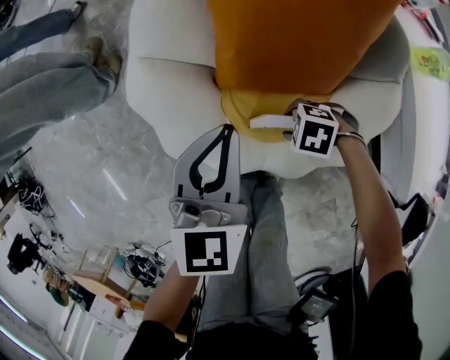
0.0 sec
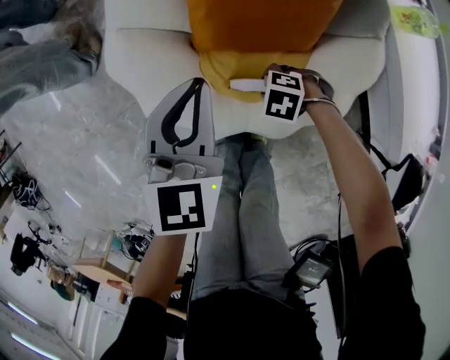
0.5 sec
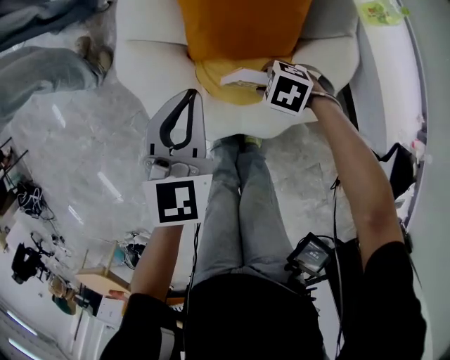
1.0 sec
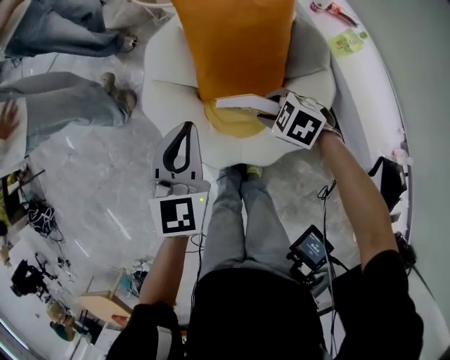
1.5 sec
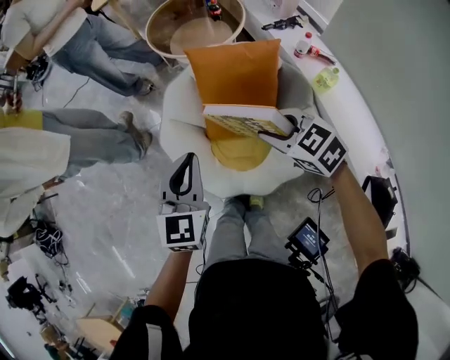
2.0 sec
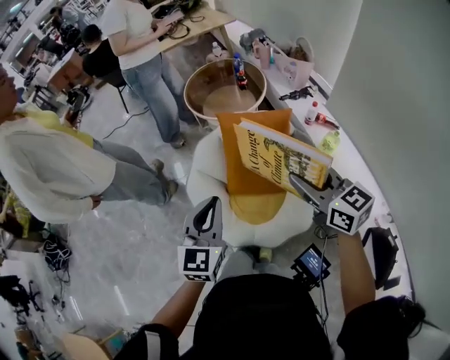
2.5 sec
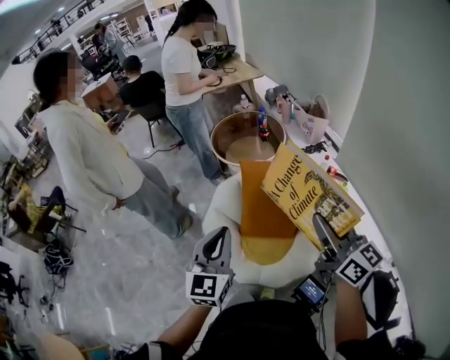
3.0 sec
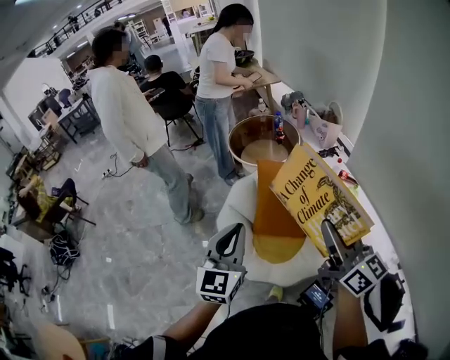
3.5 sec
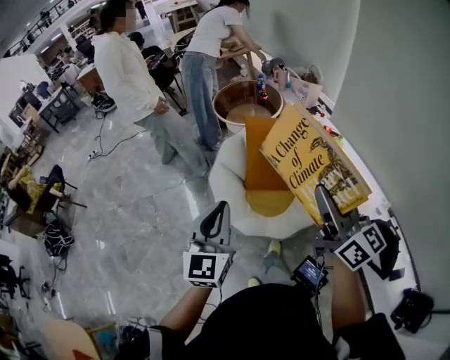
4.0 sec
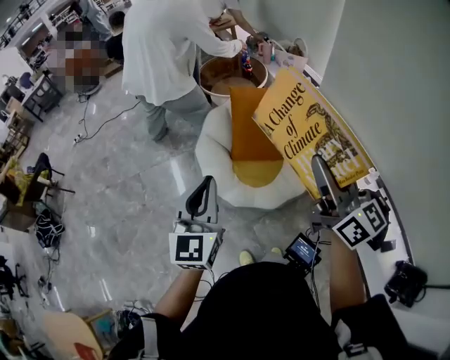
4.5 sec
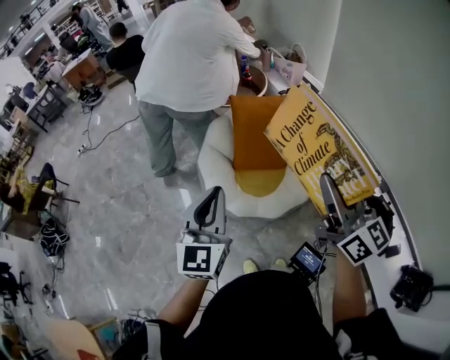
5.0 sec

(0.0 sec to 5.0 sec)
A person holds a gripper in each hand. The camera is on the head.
0.0 sec - 2.5 sec: The left gripper shifts roughly 40 cm upward; the right gripper heads upward, covering about 70 cm, and angles its fingers upward, by some 50 degrees.
2.5 sec - 5.0 sec: The left gripper heads backward, covering about 25 cm. Meanwhile the right gripper is displaced backward and upward by approximately 35 cm, and swivels some 30 degrees.

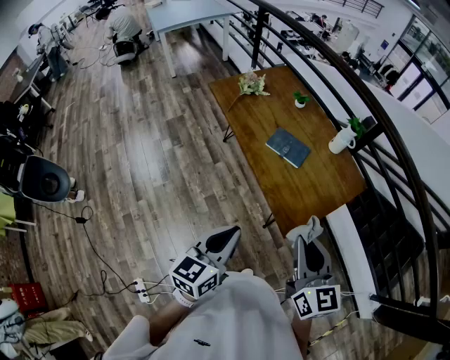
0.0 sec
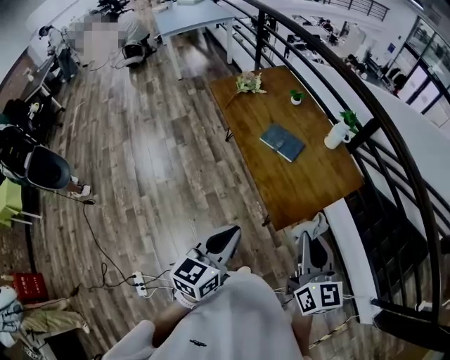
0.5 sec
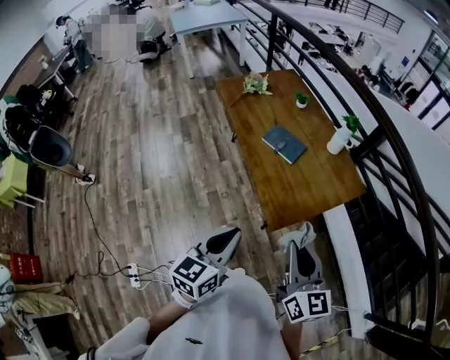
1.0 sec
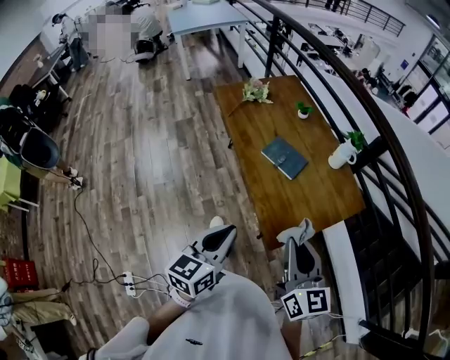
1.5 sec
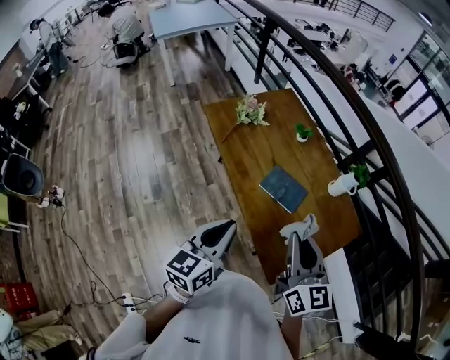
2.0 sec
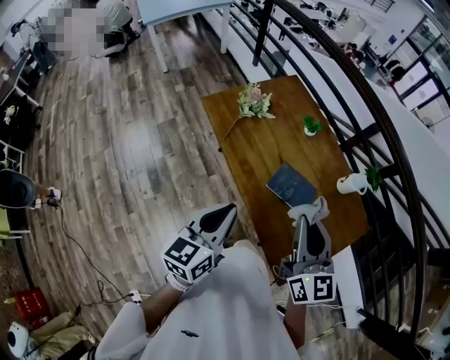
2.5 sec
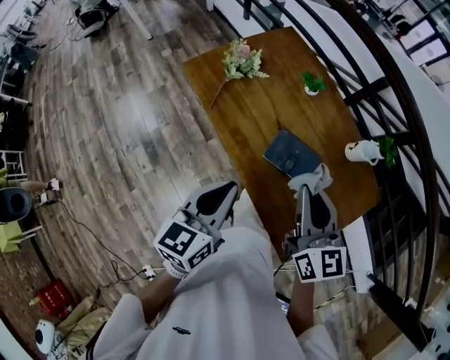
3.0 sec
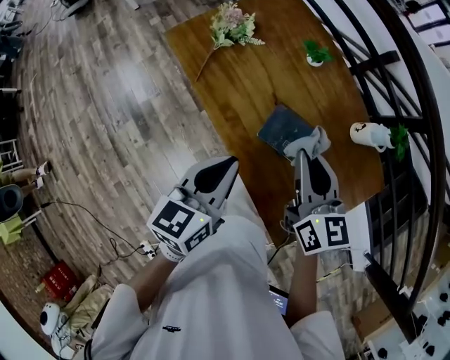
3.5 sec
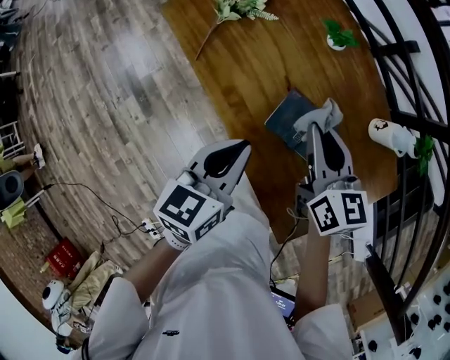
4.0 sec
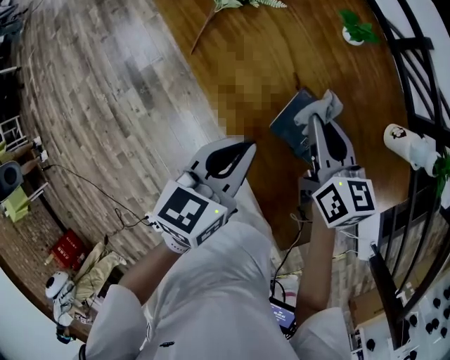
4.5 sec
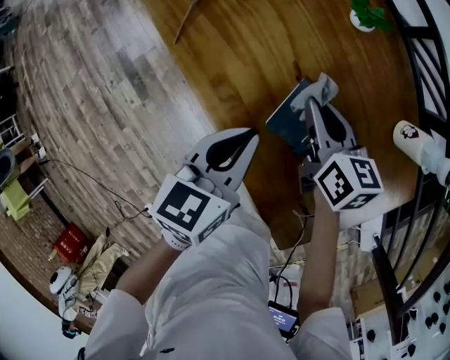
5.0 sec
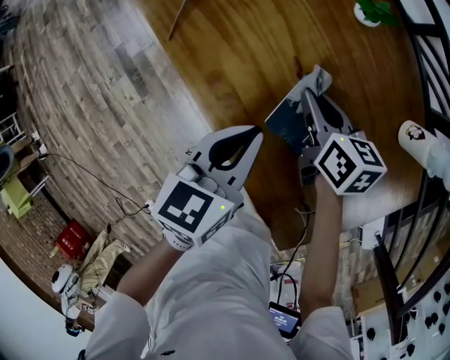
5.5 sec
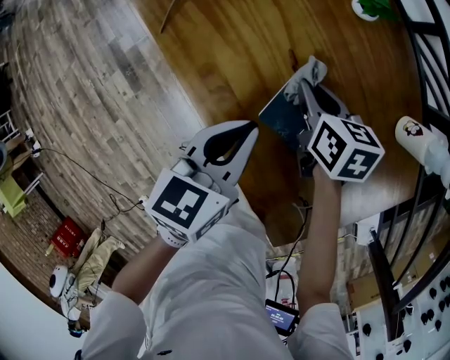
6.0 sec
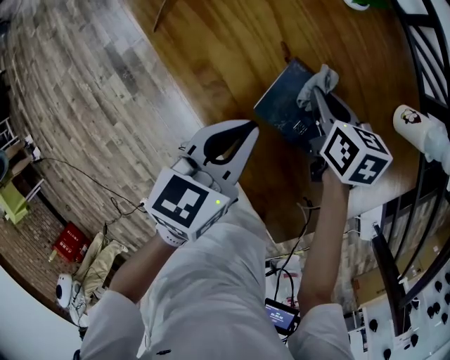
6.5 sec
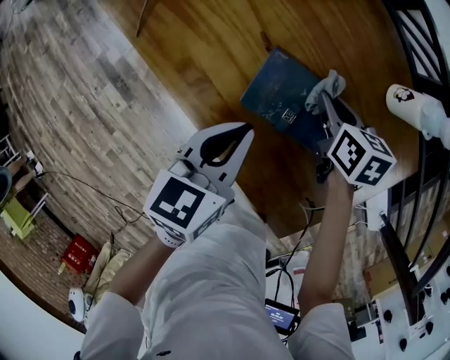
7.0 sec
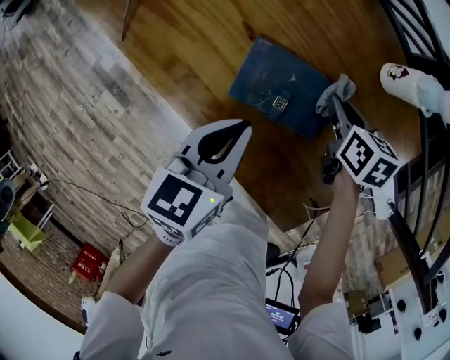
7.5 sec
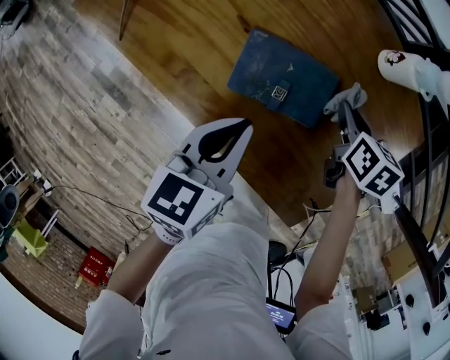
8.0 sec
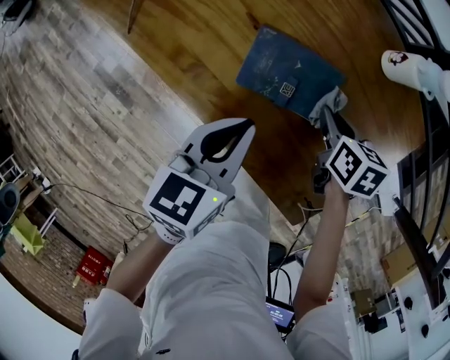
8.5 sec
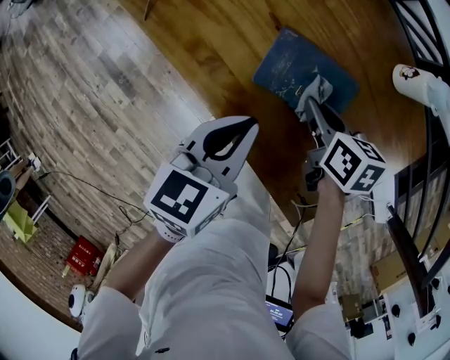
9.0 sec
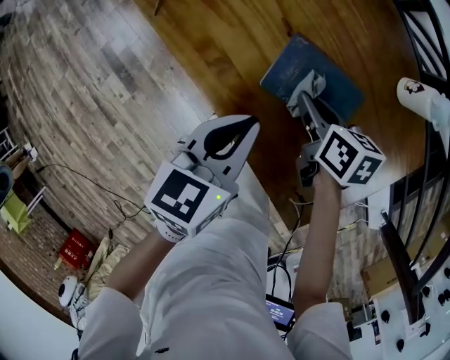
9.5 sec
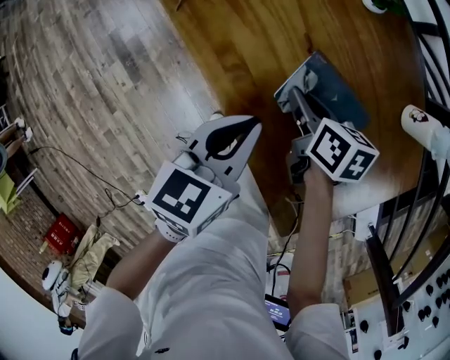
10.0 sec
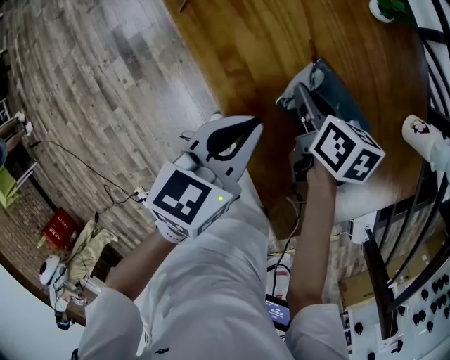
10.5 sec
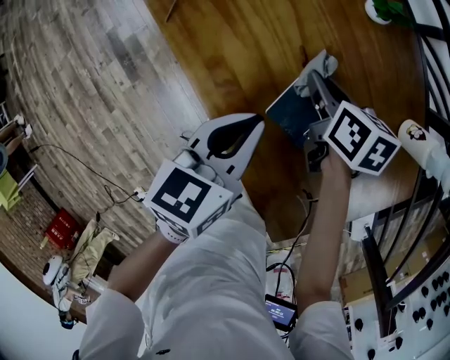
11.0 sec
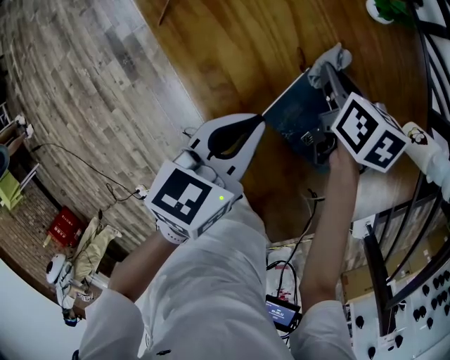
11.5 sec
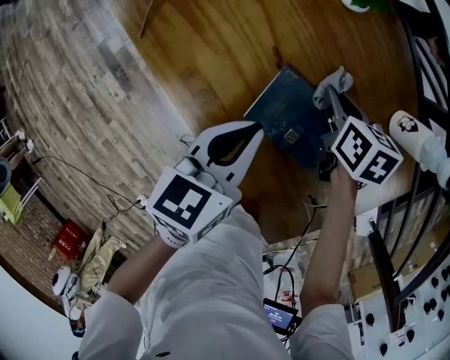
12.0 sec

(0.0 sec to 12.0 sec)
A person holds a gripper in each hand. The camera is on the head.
0.0 sec - 2.0 sec: Both grippers travel together forward, roughly 20 cm.
2.0 sec - 4.0 sec: The grippers both shift forward and downward by about 30 cm.
4.0 sec - 6.0 sec: The left gripper travels downward by approximately 10 cm, while the right gripper heads downward, covering some 20 cm, and swivels about 30 degrees.
6.0 sec - 8.0 sec: The left gripper travels to the right by about 5 cm. The right gripper heads to the right, covering approximately 20 cm, and turns by roughly 30 degrees.
8.0 sec - 10.0 sec: The left gripper changes place by approximately 10 cm. Meanwhile the right gripper changes place by about 25 cm, and changes its angle by about 30 degrees.
10.0 sec - 12.0 sec: The right gripper heads to the right and forward, covering approximately 15 cm. The left gripper shifts approximately 5 cm to the right.

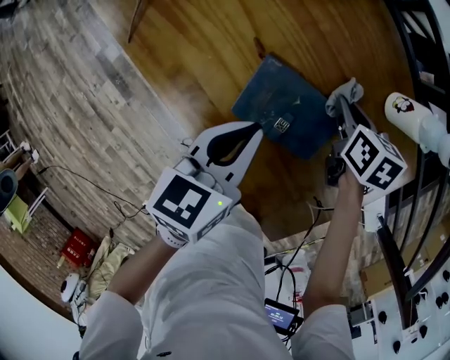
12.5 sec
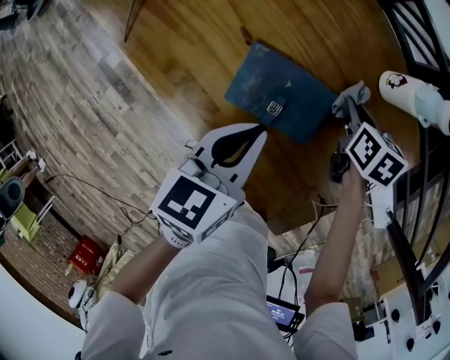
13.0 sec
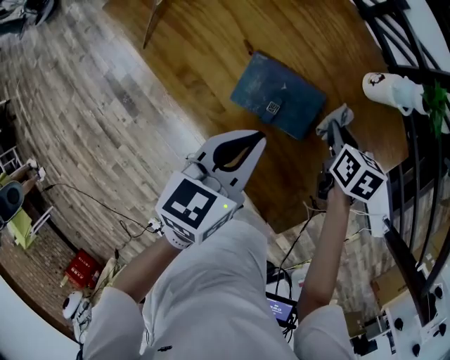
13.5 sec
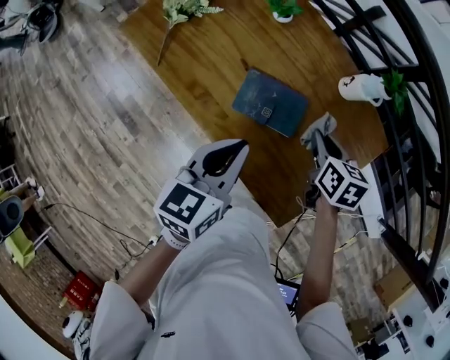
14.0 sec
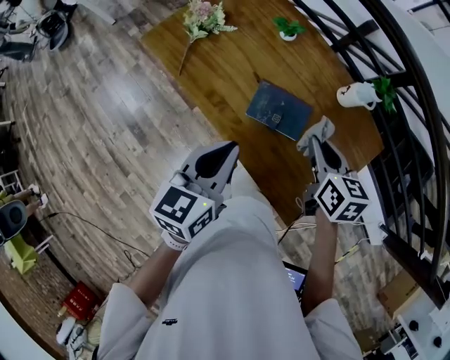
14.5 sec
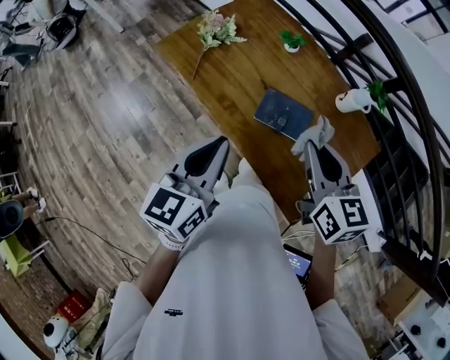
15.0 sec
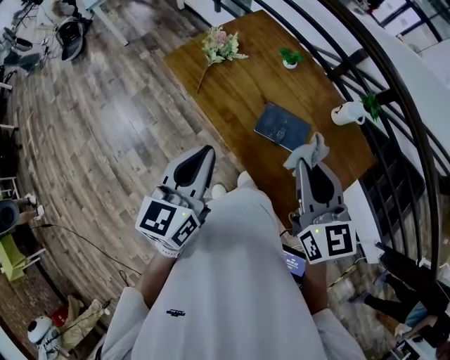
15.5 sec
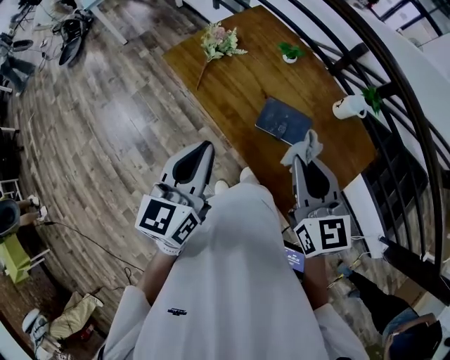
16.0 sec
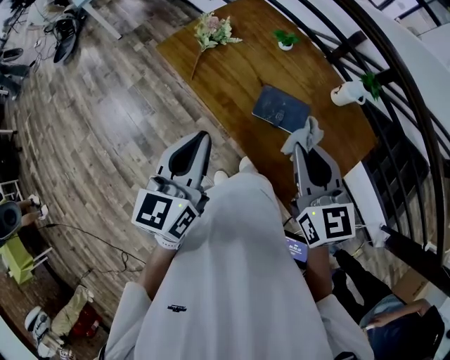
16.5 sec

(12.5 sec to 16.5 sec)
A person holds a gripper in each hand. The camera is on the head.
12.5 sec - 14.5 sec: The grippers both shift upward and backward by about 25 cm. The right gripper turns by about 20 degrees.
14.5 sec - 16.5 sec: The right gripper goes roughly 20 cm upward, to the left and backward, and turns by approximately 30 degrees, while the left gripper travels to the left and upward by about 15 cm.

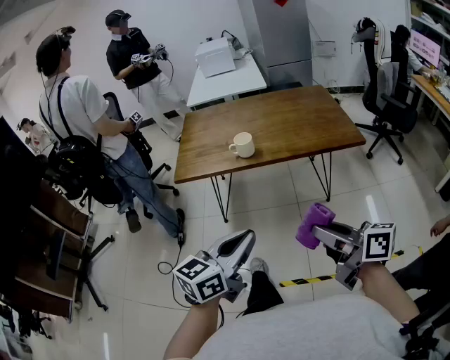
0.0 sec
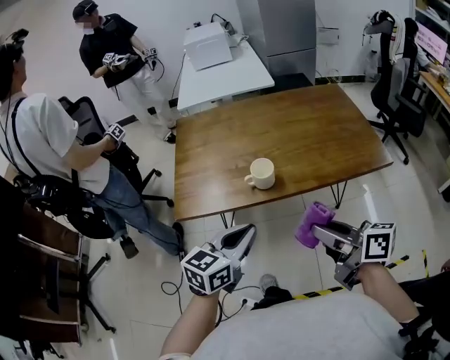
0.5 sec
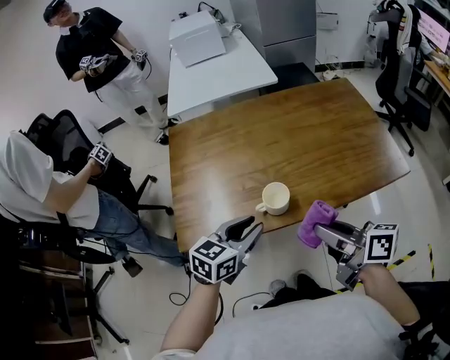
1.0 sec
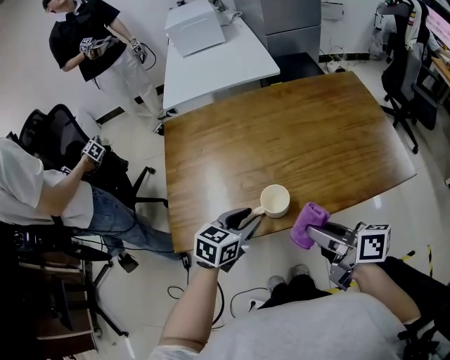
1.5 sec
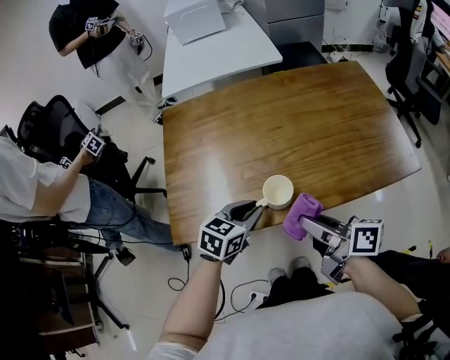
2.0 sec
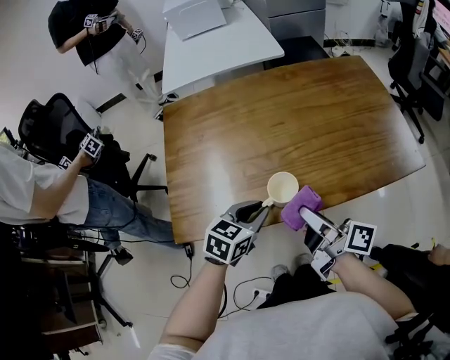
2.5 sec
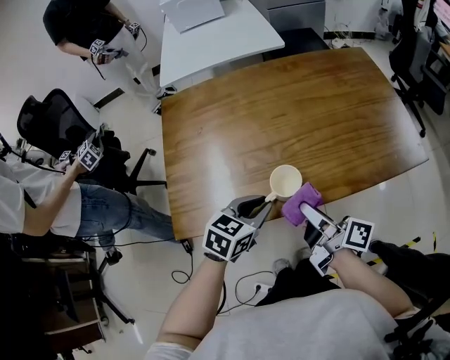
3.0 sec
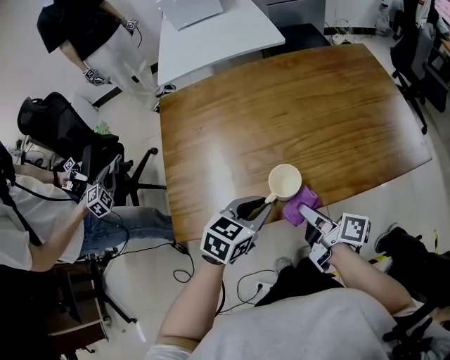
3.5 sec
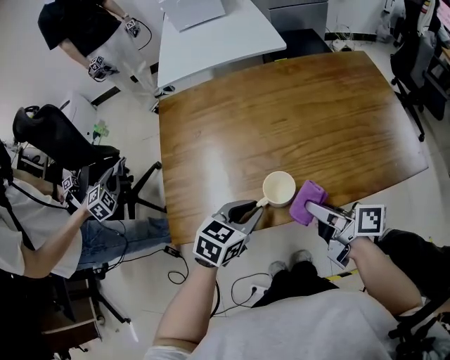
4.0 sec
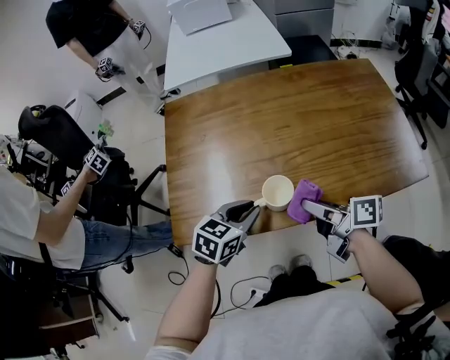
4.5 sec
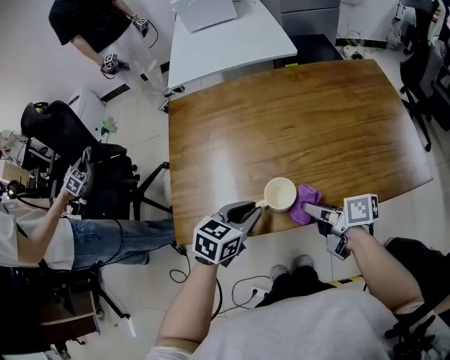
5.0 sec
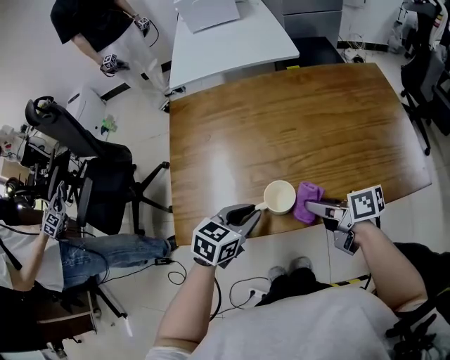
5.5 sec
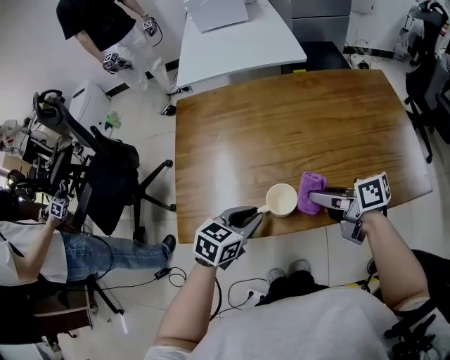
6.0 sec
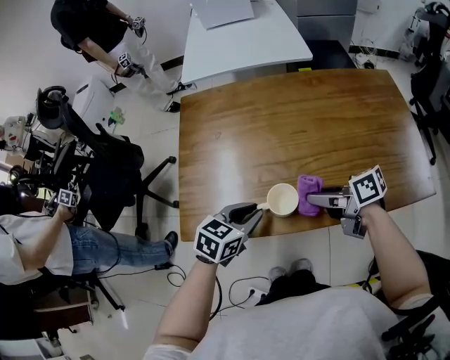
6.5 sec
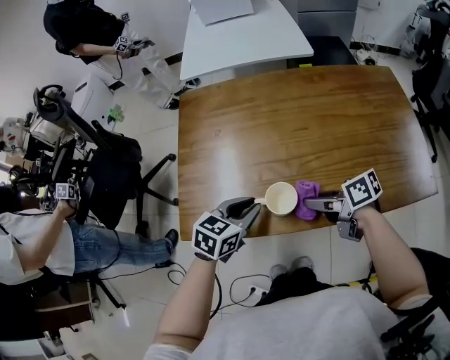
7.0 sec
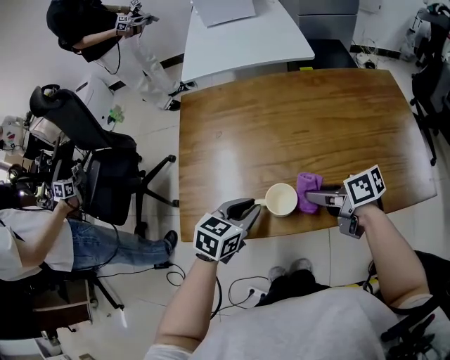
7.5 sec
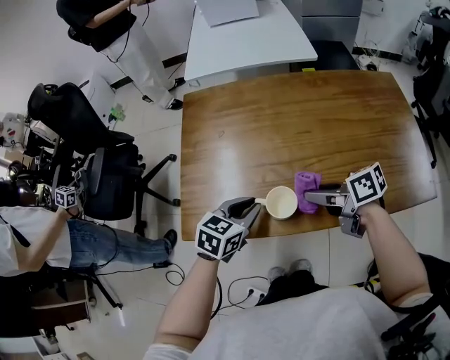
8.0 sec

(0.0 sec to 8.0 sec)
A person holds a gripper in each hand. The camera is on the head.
0.0 sec - 2.0 sec: The two grippers travel together, forward, about 50 cm. The left gripper changes its angle by roughly 30 degrees.
2.0 sec - 4.0 sec: The right gripper shifts approximately 5 cm downward.
4.0 sec - 6.0 sec: The right gripper goes about 5 cm forward, and rotates approximately 20 degrees.
